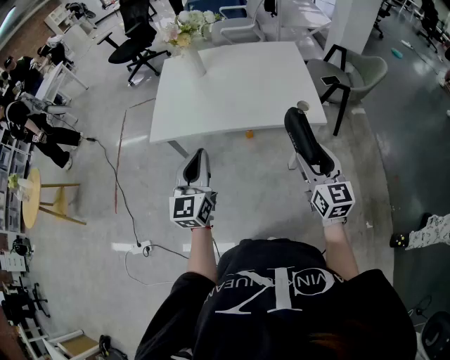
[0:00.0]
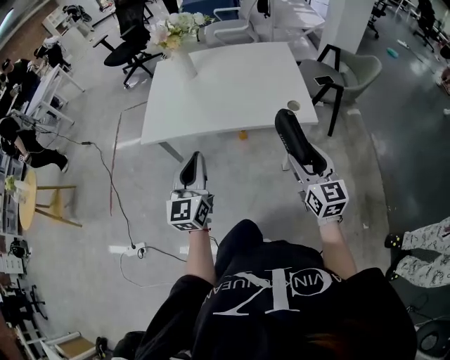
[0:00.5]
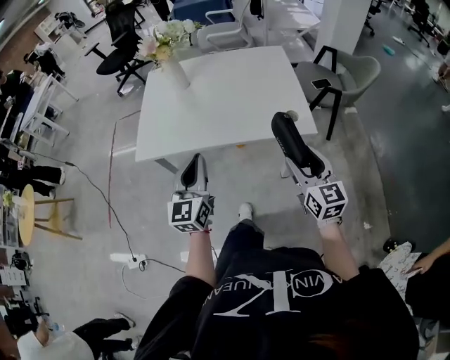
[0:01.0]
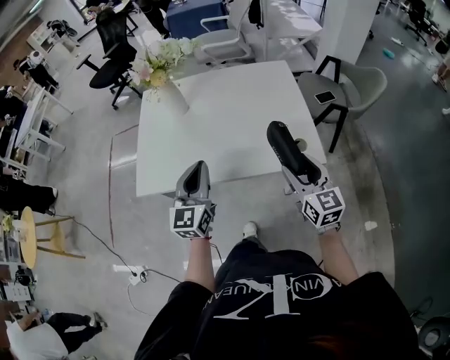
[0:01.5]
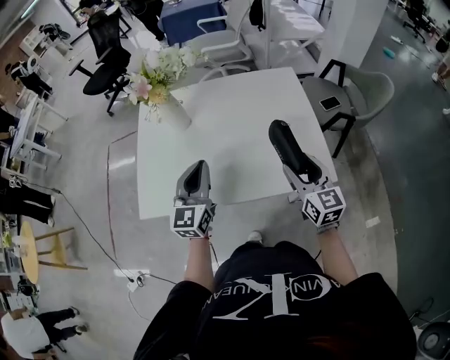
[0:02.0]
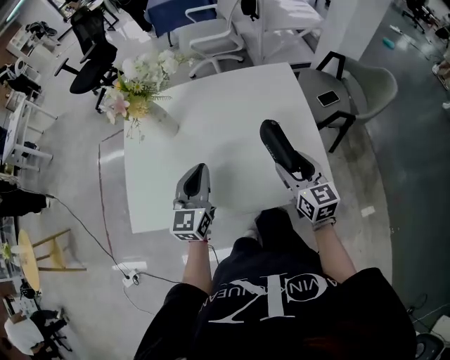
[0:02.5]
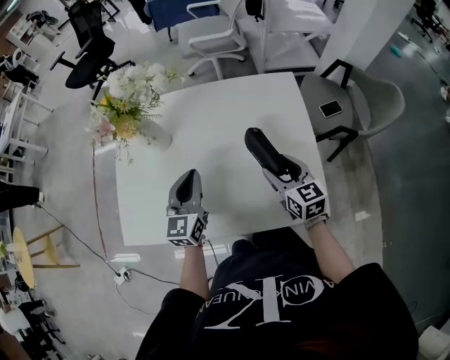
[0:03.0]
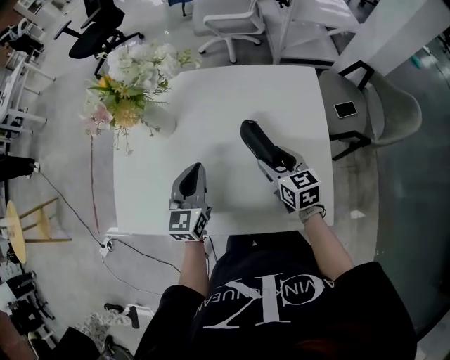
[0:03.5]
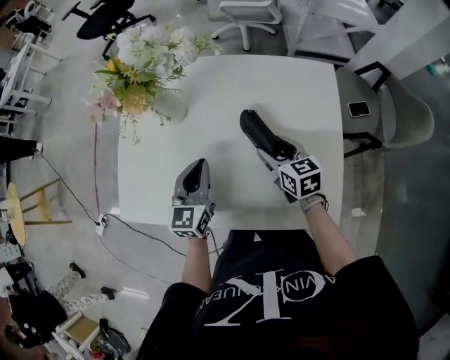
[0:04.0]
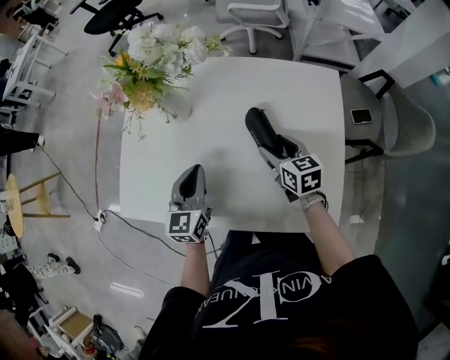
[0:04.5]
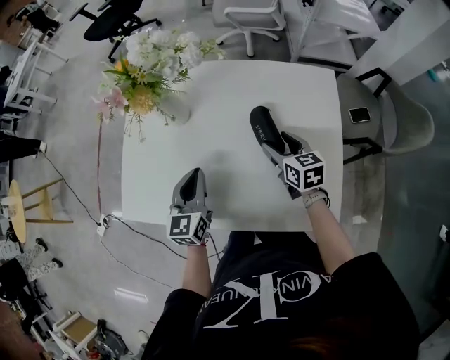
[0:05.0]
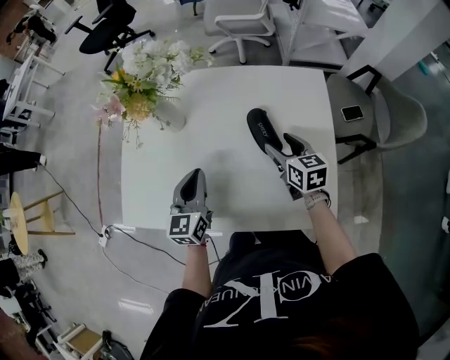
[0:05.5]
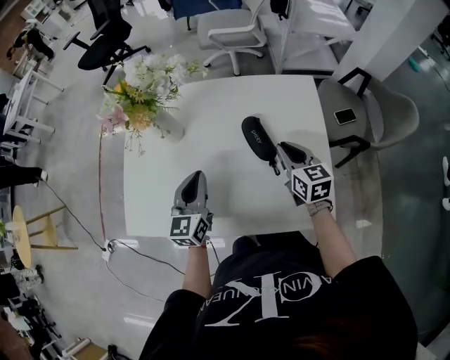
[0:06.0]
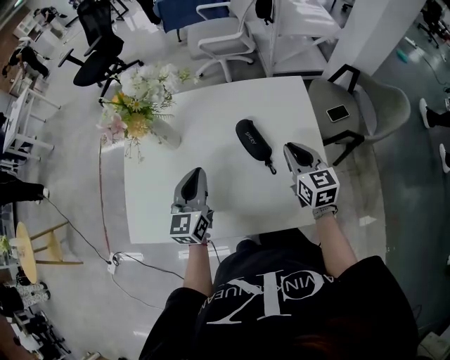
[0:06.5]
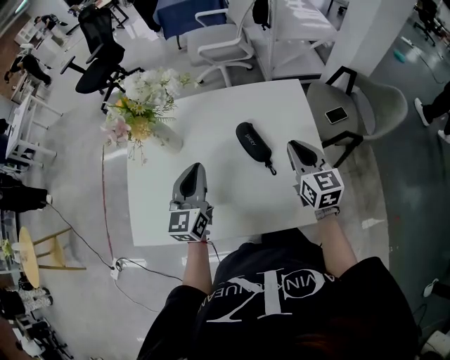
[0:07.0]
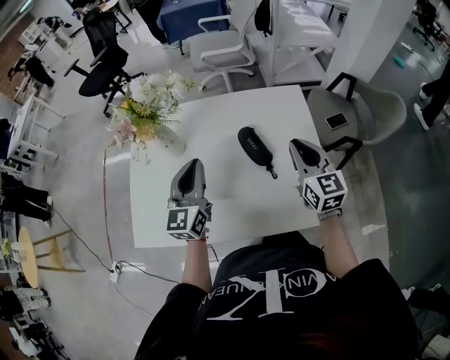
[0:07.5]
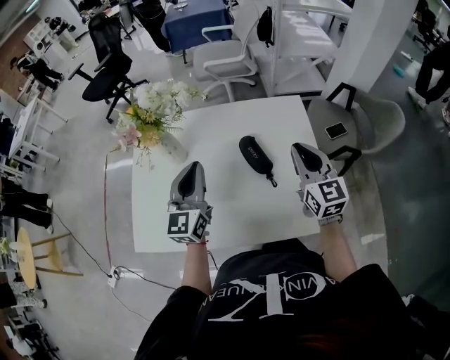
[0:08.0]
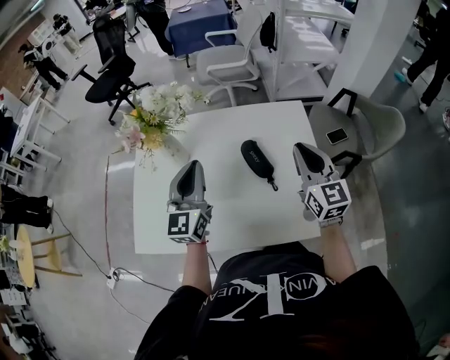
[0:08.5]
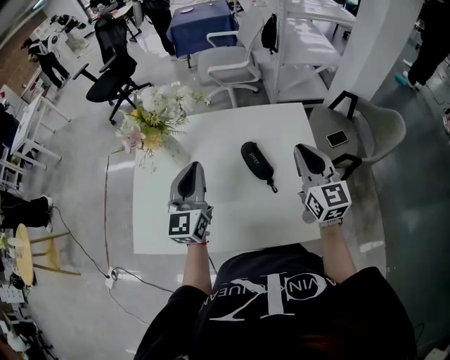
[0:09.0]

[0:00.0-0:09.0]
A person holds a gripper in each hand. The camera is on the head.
0:00.0 to 0:02.0: The two grippers go approximately 25 cm forward.
0:02.0 to 0:04.5: The left gripper heads downward and forward, covering approximately 15 cm, and rotates about 20 degrees. Meanwhile the right gripper shifts roughly 25 cm forward and downward, and changes its angle by about 30 degrees.
0:04.5 to 0:07.0: The right gripper travels upward and to the right by about 15 cm, changes its angle by approximately 30 degrees, and closes its fingers. The left gripper is displaced upward by roughly 10 cm.
0:07.0 to 0:09.0: Both grippers move upward, about 5 cm.

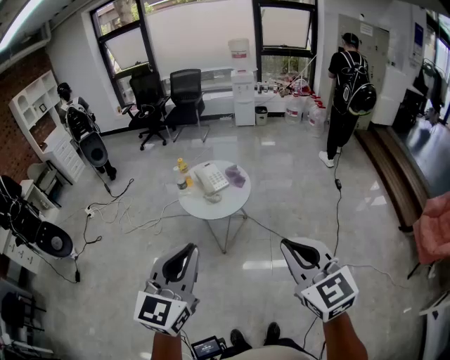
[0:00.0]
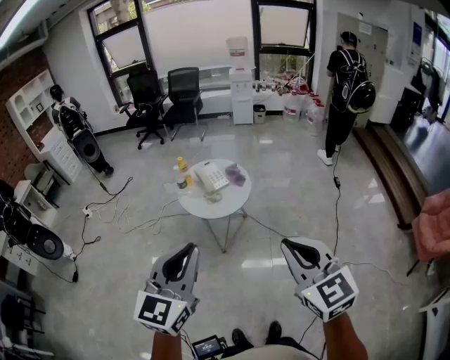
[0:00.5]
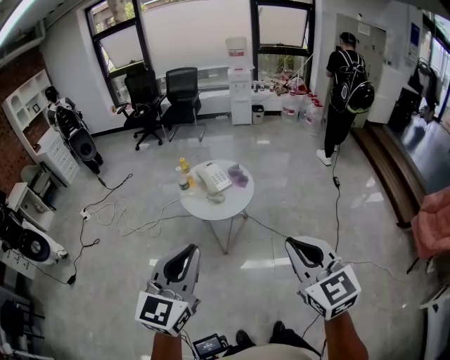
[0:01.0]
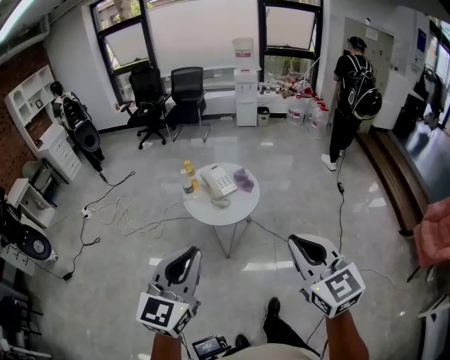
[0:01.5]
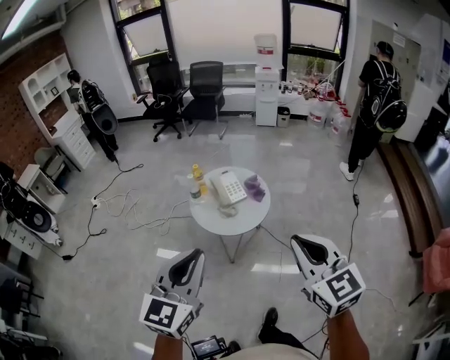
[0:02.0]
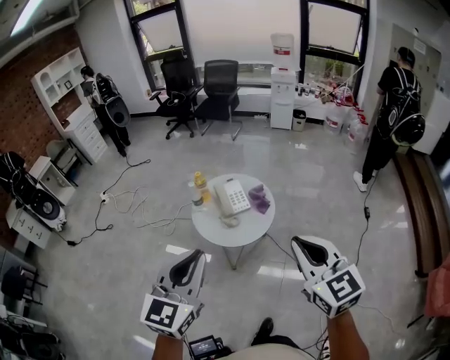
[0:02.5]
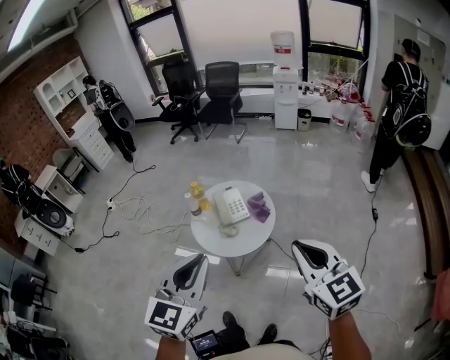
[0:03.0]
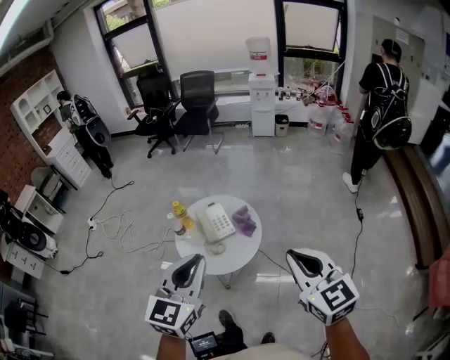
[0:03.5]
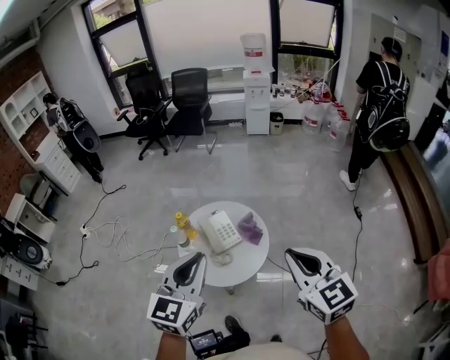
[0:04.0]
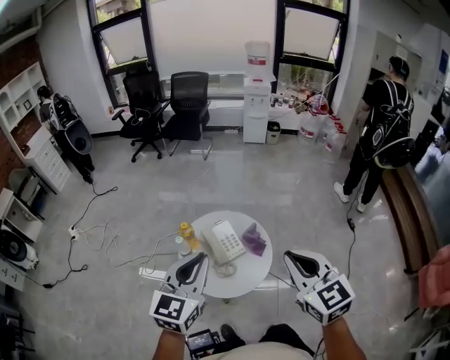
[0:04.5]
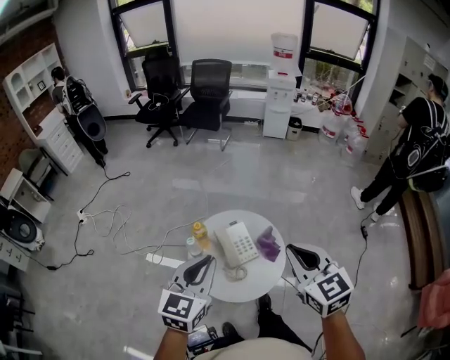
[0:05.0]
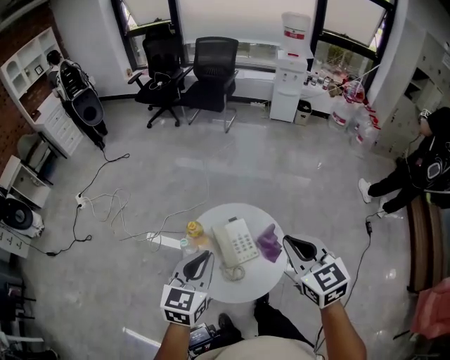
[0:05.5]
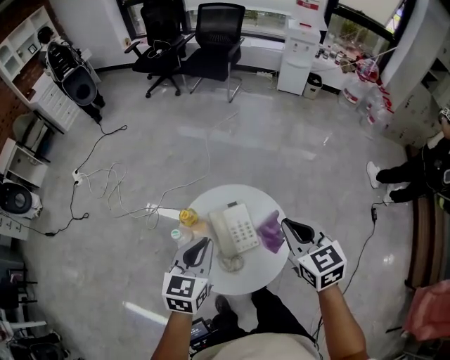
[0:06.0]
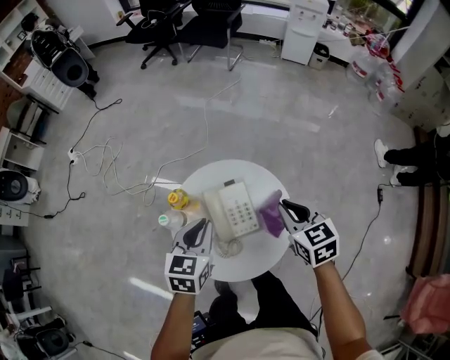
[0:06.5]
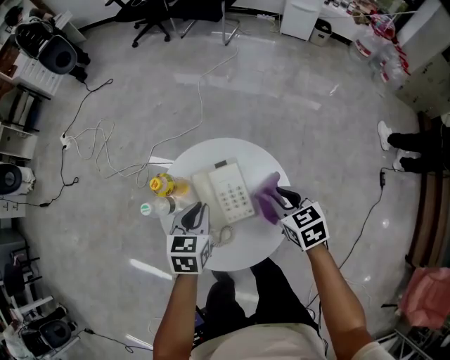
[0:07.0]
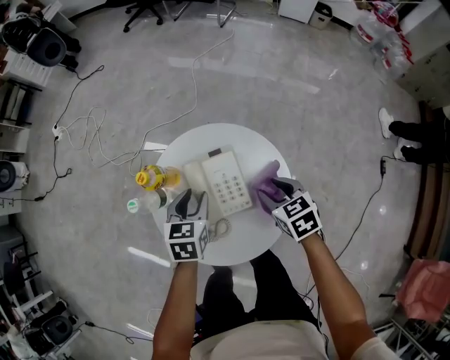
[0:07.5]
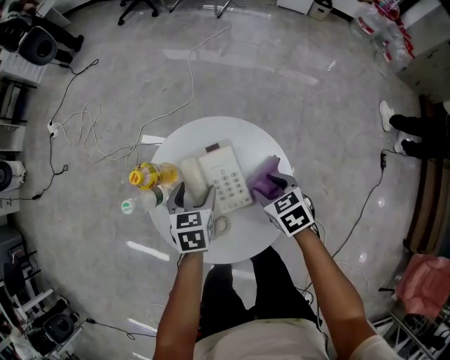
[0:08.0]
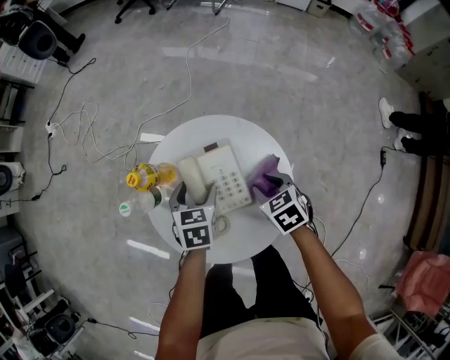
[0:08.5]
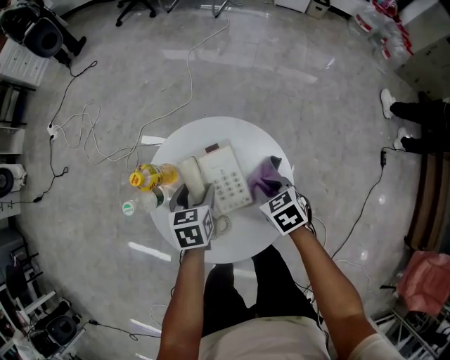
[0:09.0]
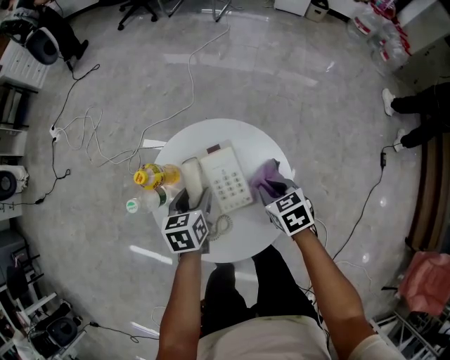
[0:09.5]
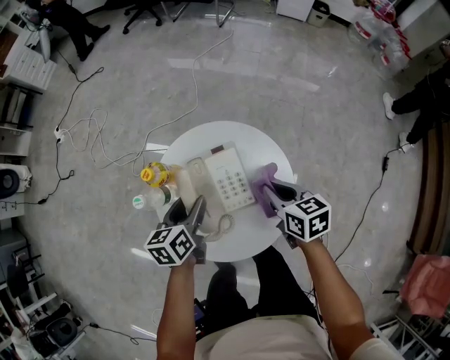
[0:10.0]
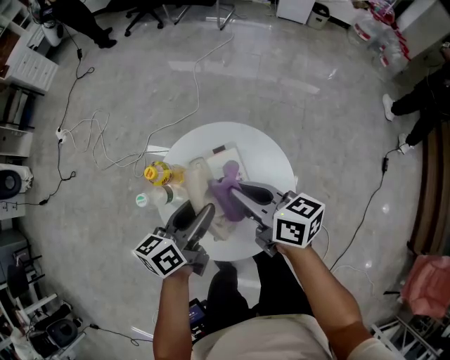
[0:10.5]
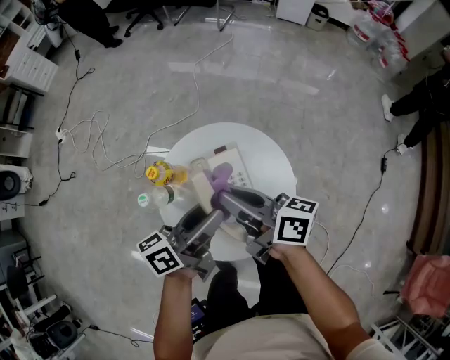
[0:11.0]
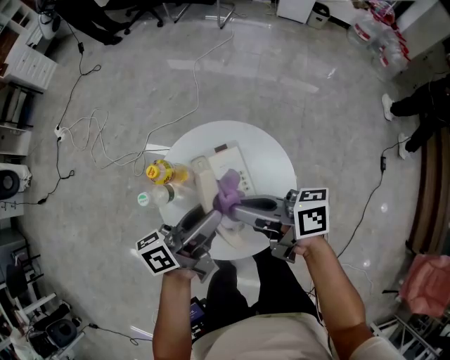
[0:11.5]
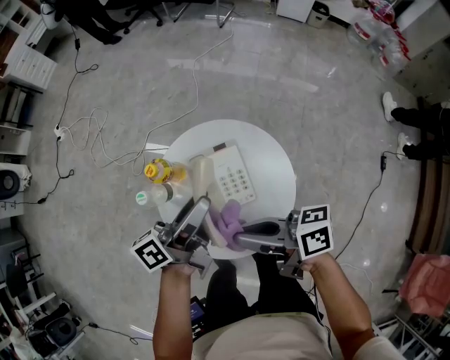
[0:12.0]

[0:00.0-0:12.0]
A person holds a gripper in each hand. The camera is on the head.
0:00.0 to 0:02.0: The grippers both shift forward by about 15 cm.
0:02.0 to 0:04.0: The grippers both shift forward by approximately 30 cm.
0:04.0 to 0:06.0: Both grippers move forward and downward, roughly 35 cm. The left gripper rotates about 20 degrees.
0:06.0 to 0:08.0: The grippers both shift downward by roughly 30 cm. The right gripper turns by about 30 degrees, and opens its fingers. The left gripper swivels about 30 degrees, and opens up.
0:08.0 to 0:10.0: Both grippers move upward, some 5 cm. The left gripper changes its angle by roughly 30 degrees; the right gripper turns by roughly 30 degrees, and closes.
0:10.0 to 0:12.0: The left gripper heads upward, covering roughly 15 cm, and tilts its fingers some 40 degrees upward. Meanwhile the right gripper moves upward, to the left and backward, roughly 20 cm, and tilts its fingers approximately 40 degrees upward.

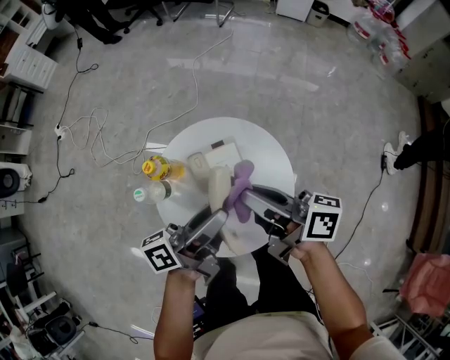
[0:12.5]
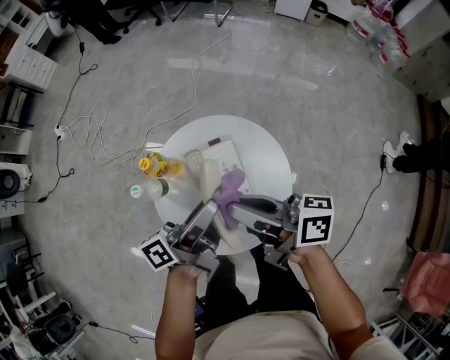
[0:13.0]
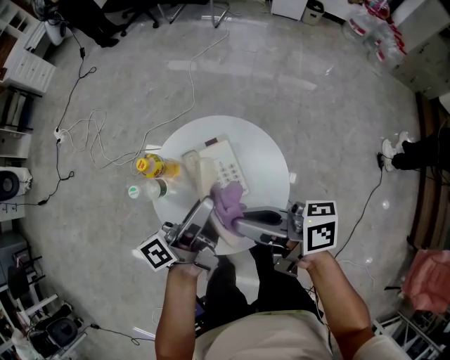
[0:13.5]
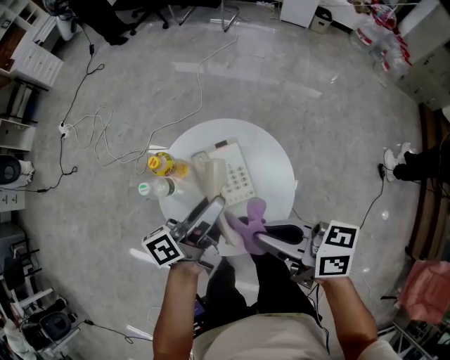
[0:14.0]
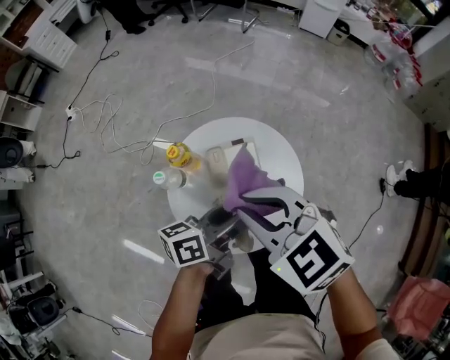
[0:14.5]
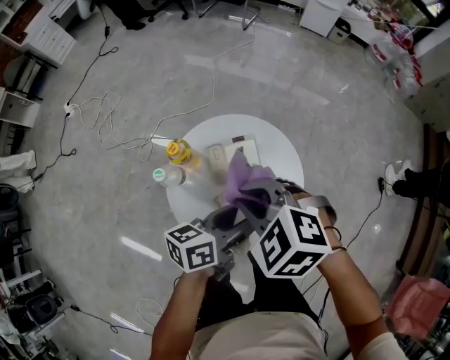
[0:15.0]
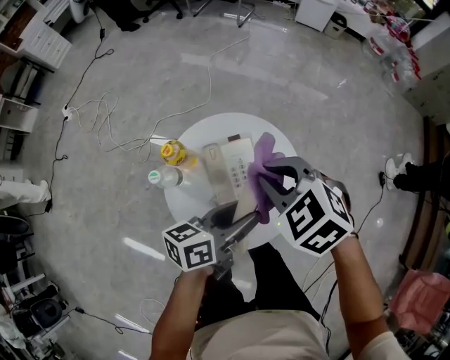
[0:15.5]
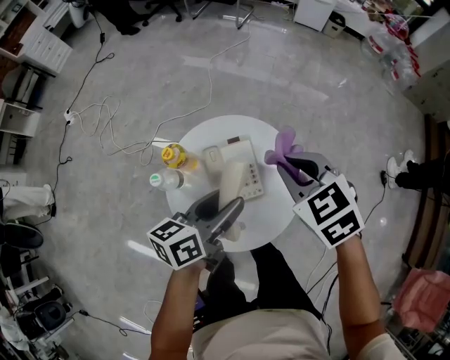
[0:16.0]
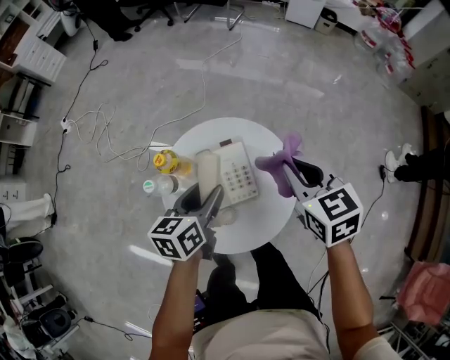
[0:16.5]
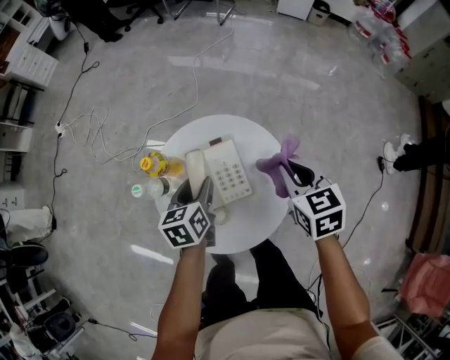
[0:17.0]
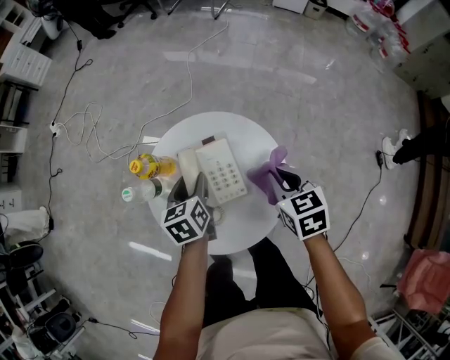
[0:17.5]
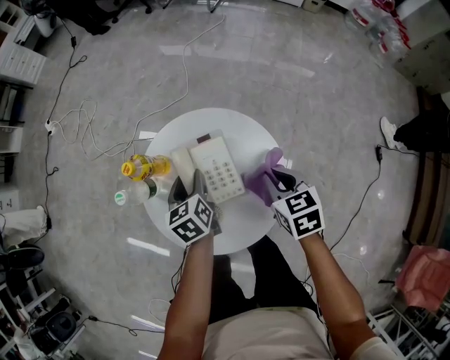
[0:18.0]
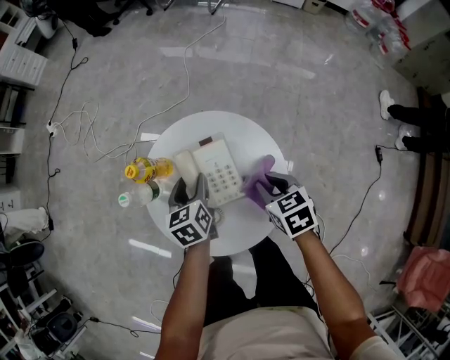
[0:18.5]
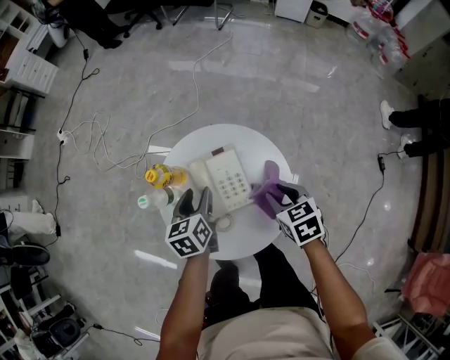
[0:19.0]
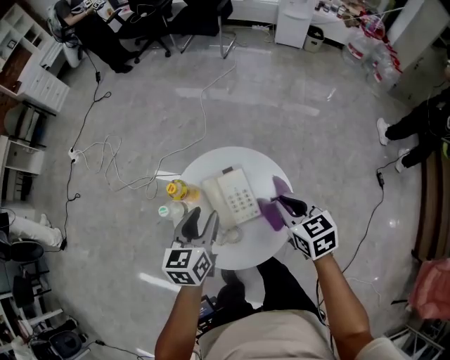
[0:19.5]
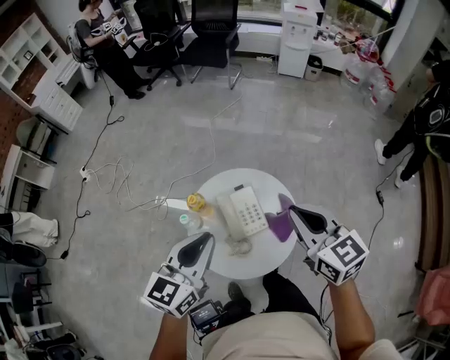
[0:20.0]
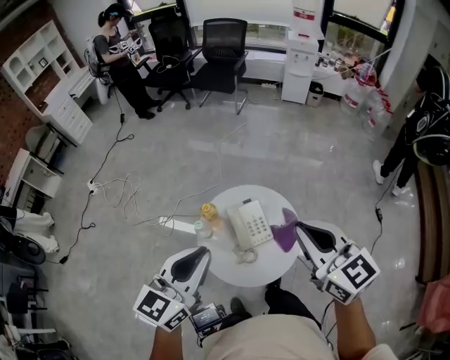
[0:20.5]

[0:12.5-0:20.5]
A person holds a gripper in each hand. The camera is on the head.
0:12.5 to 0:14.5: The right gripper goes approximately 10 cm to the left and upward, travels backward and back again, roughly 10 cm each way, and rolls counterclockwise, seen from behind, by about 70 degrees.
0:14.5 to 0:16.5: The right gripper heads to the right, forward and downward, covering roughly 20 cm, and changes its angle by approximately 30 degrees; the left gripper goes roughly 5 cm to the left, and rotates roughly 30 degrees.
0:16.5 to 0:18.5: The two grippers go approximately 15 cm downward. The left gripper rotates about 20 degrees.
0:18.5 to 0:20.5: Both grippers move upward, about 40 cm. The left gripper angles its fingers upward, by about 30 degrees, and closes. The right gripper points its fingers roughly 40 degrees further upward.
